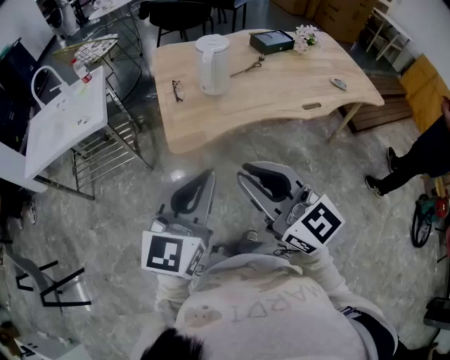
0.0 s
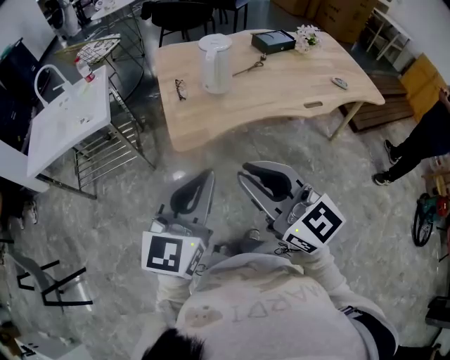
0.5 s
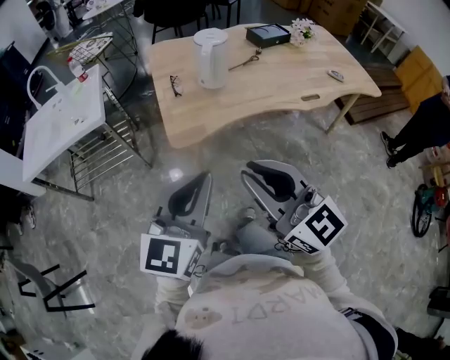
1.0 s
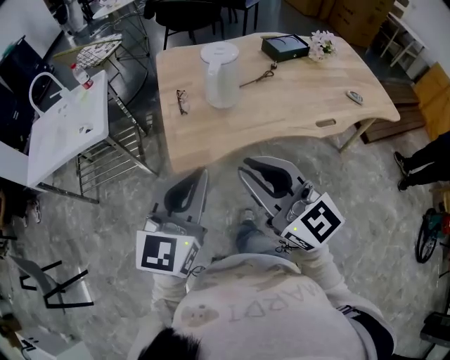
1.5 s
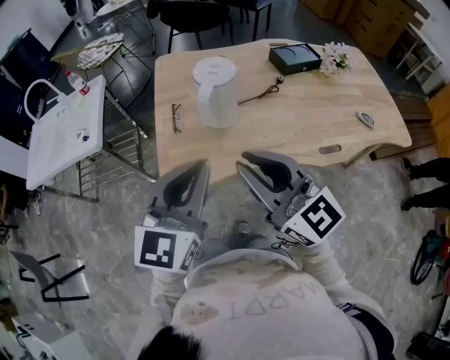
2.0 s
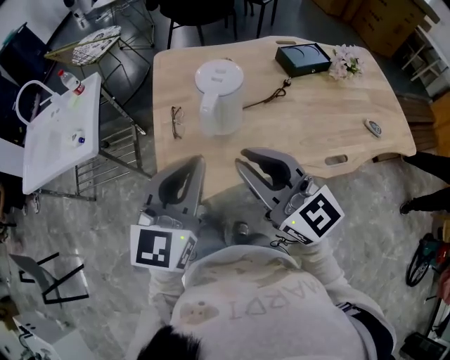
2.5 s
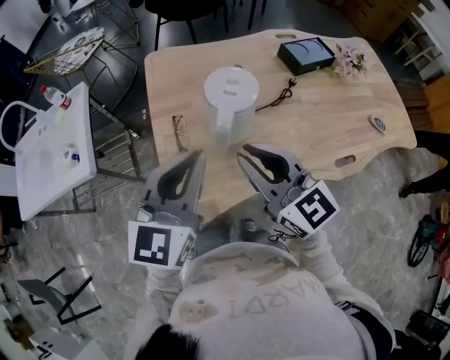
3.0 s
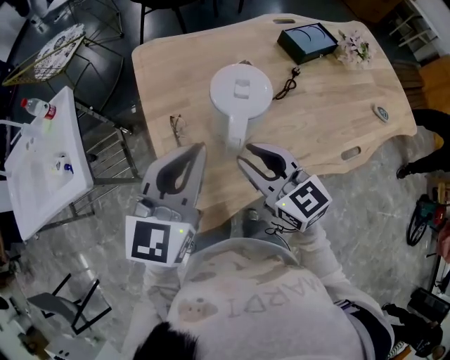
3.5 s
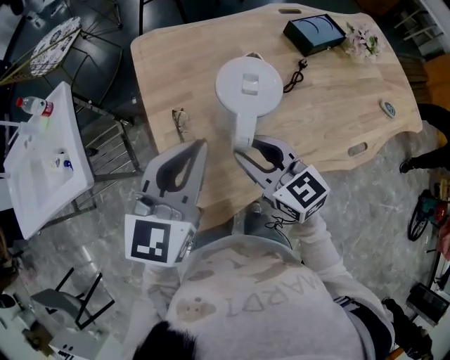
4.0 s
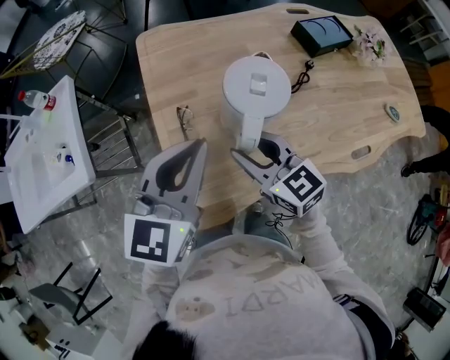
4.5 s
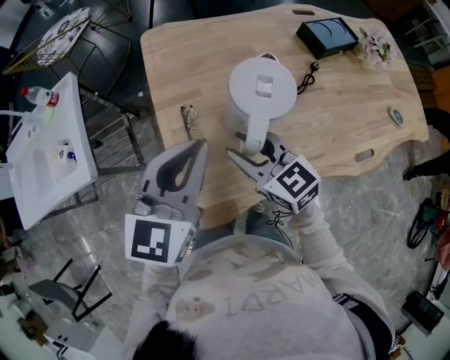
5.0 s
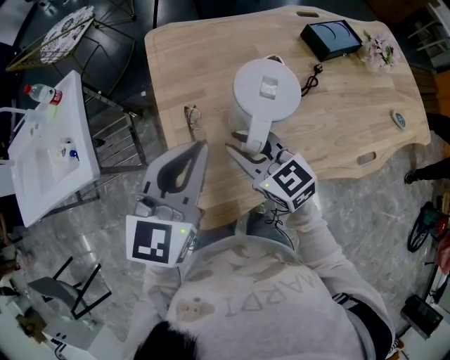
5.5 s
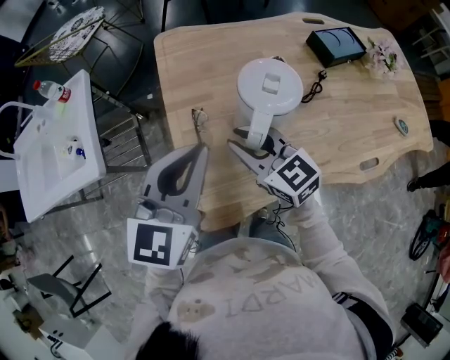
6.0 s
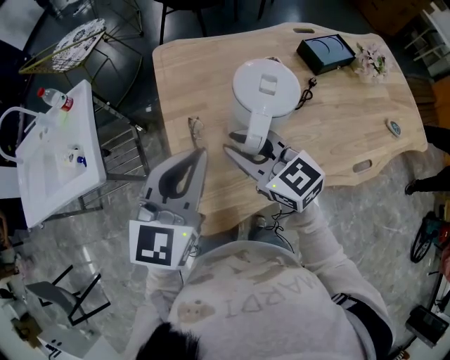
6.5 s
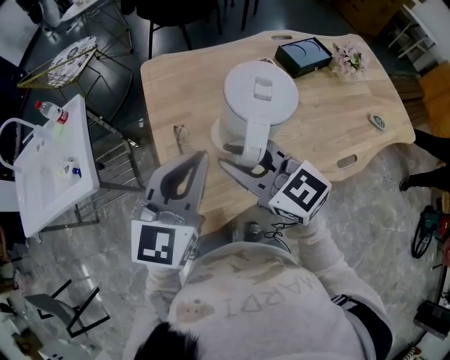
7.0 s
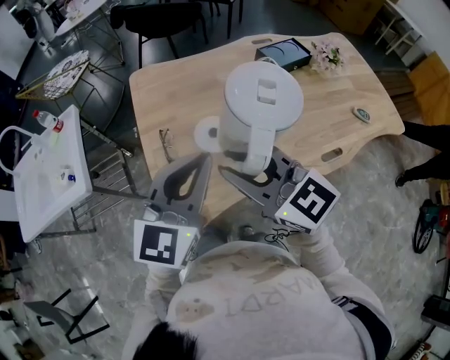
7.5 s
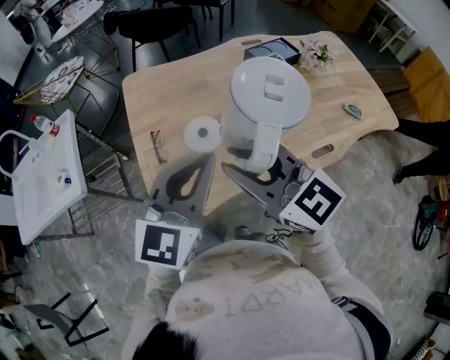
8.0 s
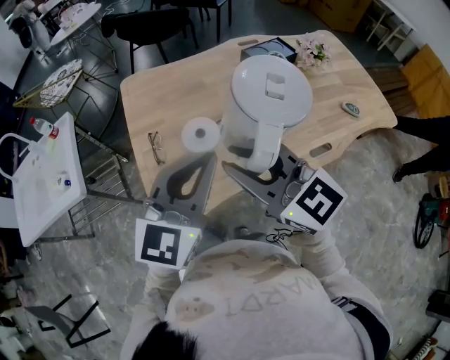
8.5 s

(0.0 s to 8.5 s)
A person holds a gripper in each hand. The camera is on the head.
0.0 s - 2.0 s: Both grippers move forward and to the right, roughly 25 cm.
2.0 s - 4.0 s: The right gripper is displaced forward and downward by approximately 30 cm, and changes its angle by about 30 degrees. The left gripper travels forward by roughly 25 cm.
4.0 s - 6.5 s: The right gripper shifts by some 5 cm.
6.5 s - 8.5 s: The right gripper shifts about 20 cm backward, upward and to the right, while the left gripper moves to the right and backward, some 20 cm.

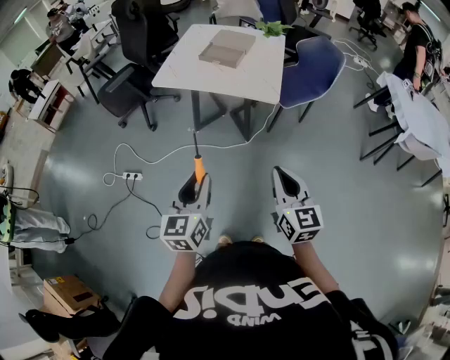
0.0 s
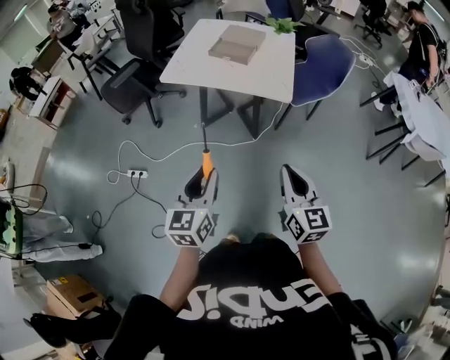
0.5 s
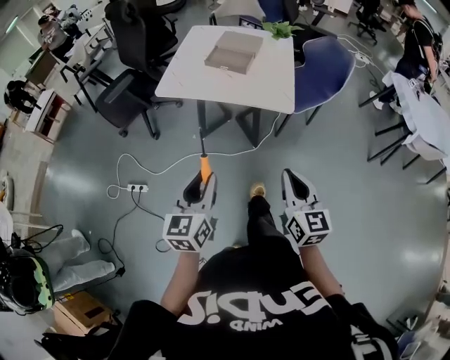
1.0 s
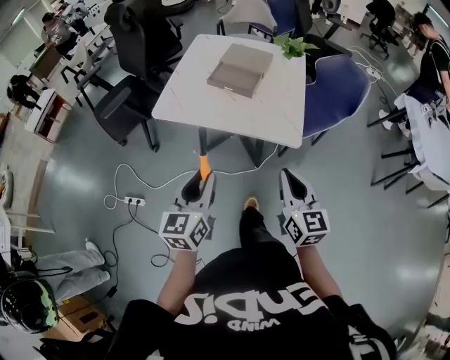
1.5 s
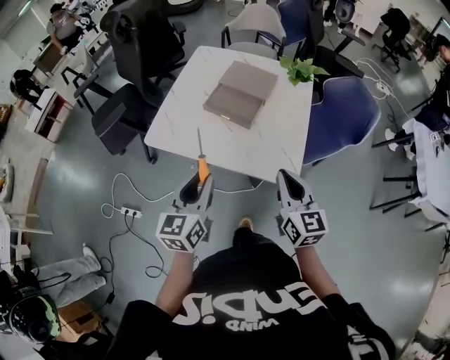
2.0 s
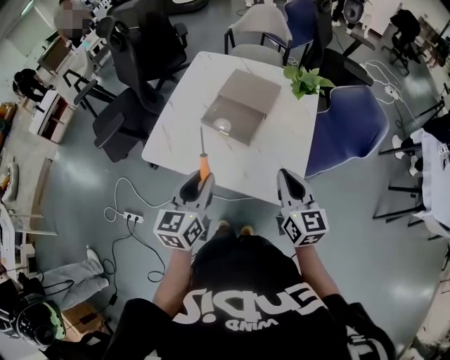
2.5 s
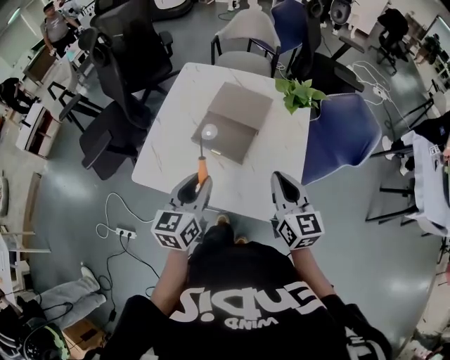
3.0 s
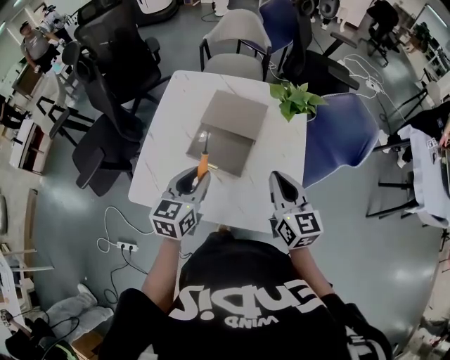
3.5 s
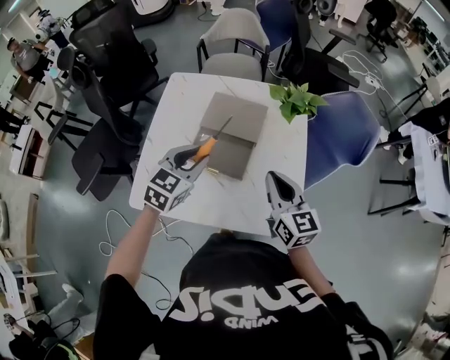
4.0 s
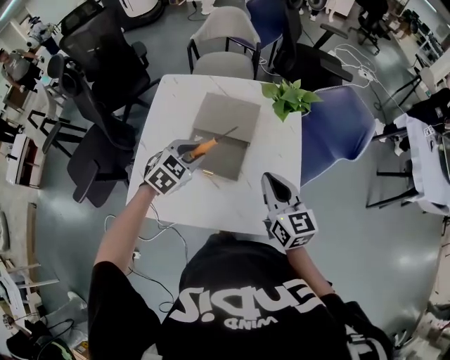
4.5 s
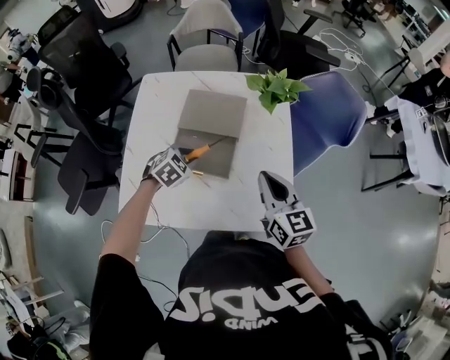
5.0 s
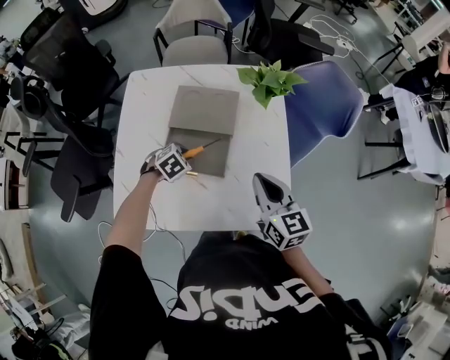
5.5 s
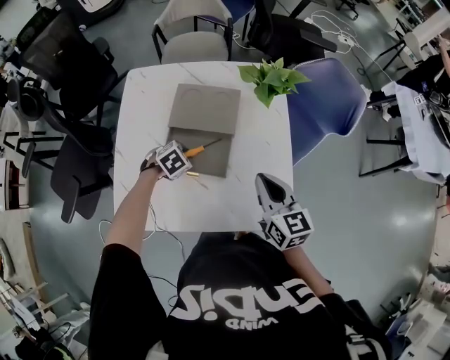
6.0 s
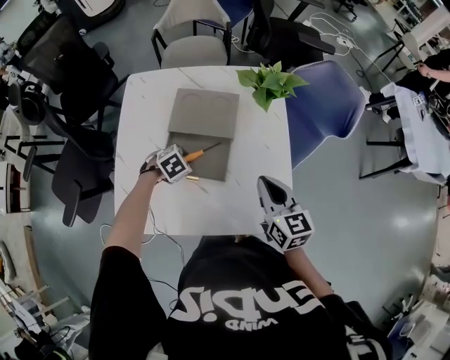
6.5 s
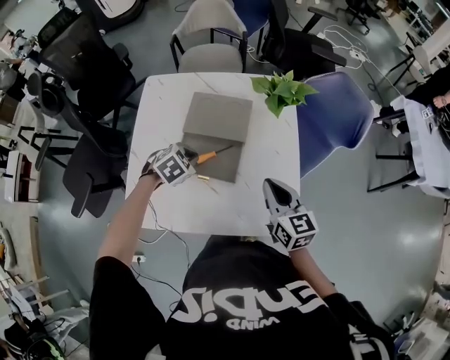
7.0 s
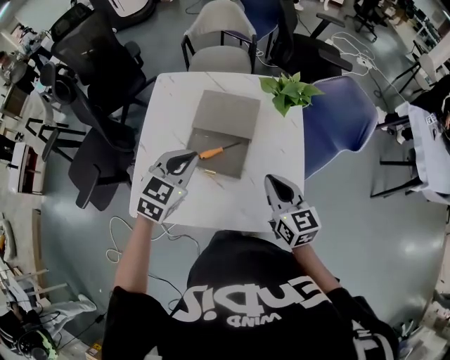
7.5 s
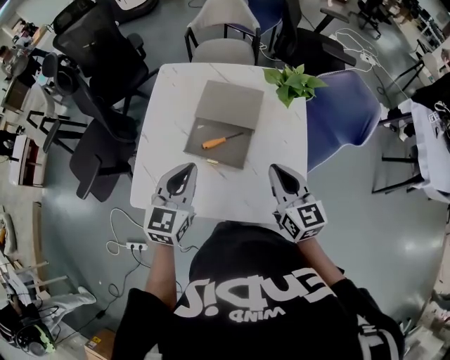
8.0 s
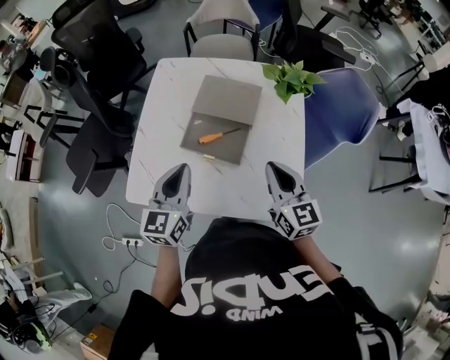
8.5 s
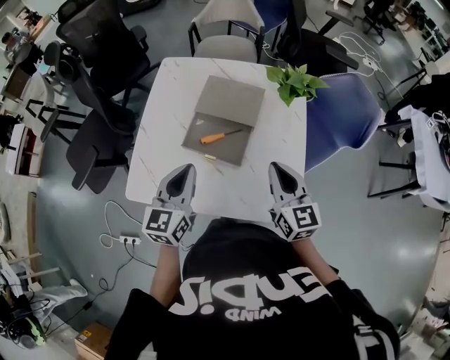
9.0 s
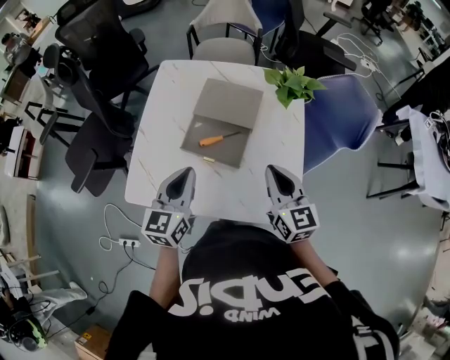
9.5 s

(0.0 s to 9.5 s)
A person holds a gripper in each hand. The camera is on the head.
0.0 s - 2.0 s: Both grippers are carried forward, some 40 cm.
2.0 s - 4.0 s: Both grippers move forward, about 30 cm. The left gripper rotates some 40 degrees.
4.0 s - 5.5 s: The left gripper goes some 25 cm downward, and angles its fingers downward, by roughly 40 degrees.
5.5 s - 7.5 s: The left gripper travels upward by some 25 cm, angles its fingers upward, by some 40 degrees, and closes.
7.5 s - 9.5 s: The left gripper travels backward by approximately 10 cm, and rotates approximately 40 degrees.

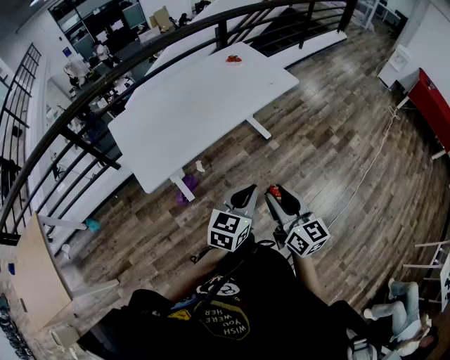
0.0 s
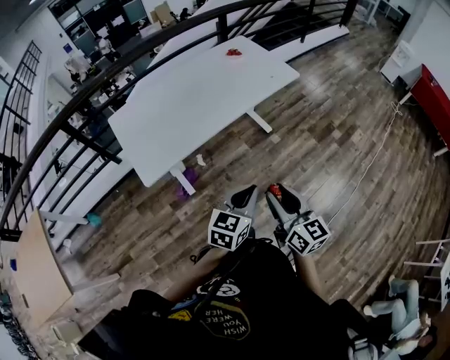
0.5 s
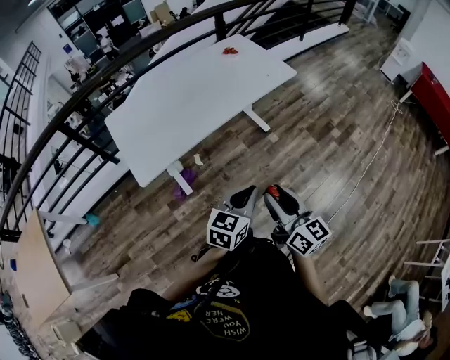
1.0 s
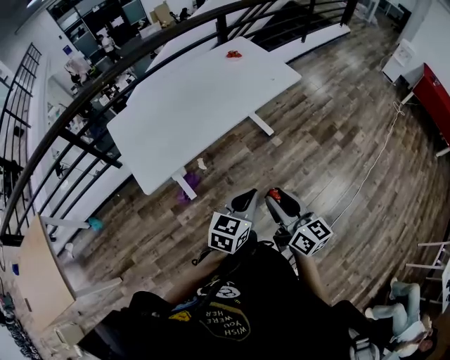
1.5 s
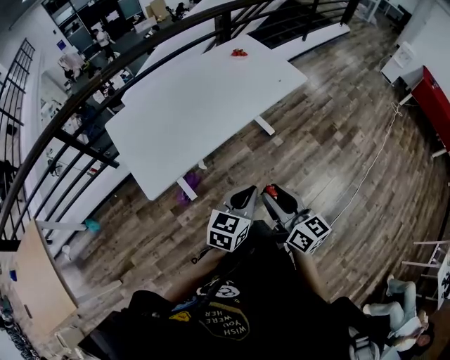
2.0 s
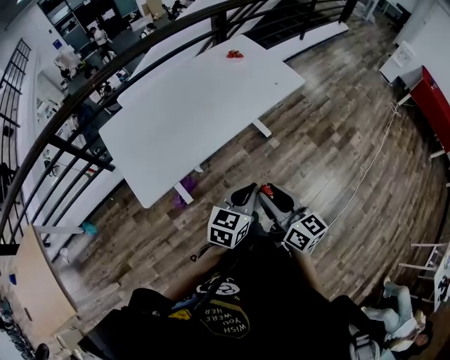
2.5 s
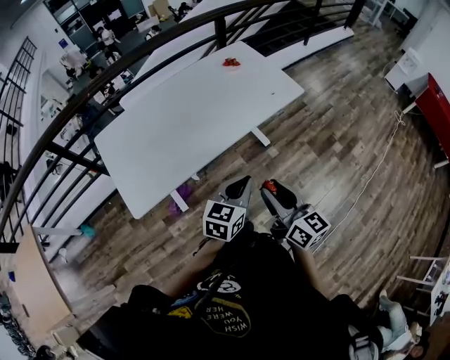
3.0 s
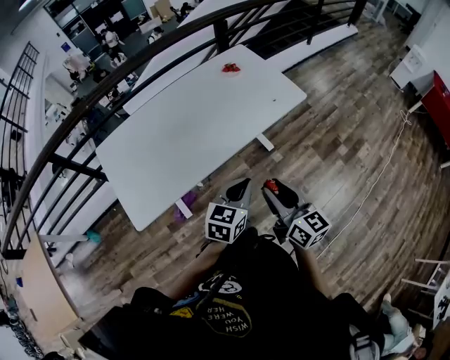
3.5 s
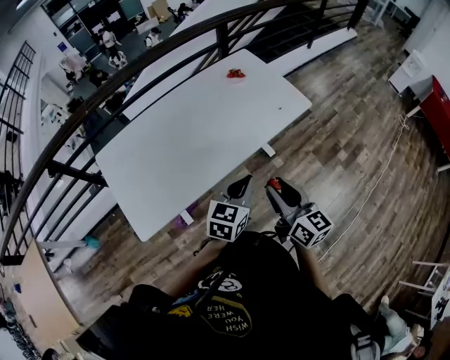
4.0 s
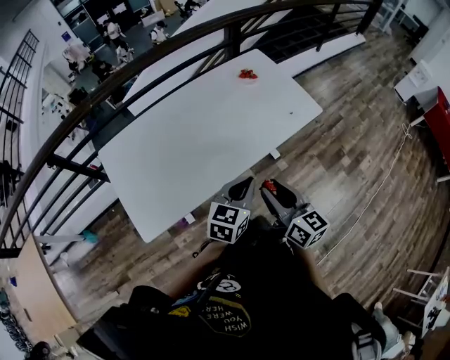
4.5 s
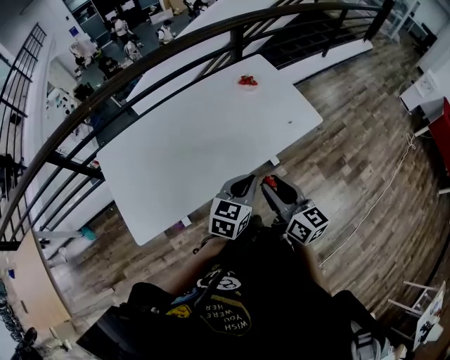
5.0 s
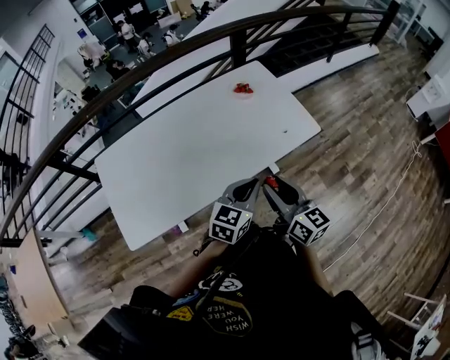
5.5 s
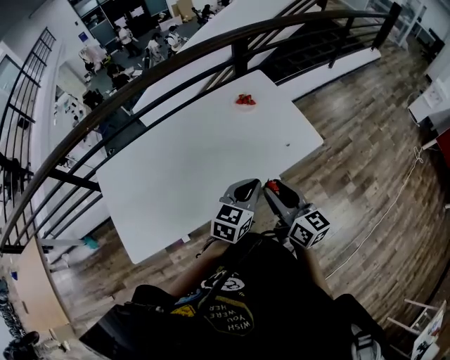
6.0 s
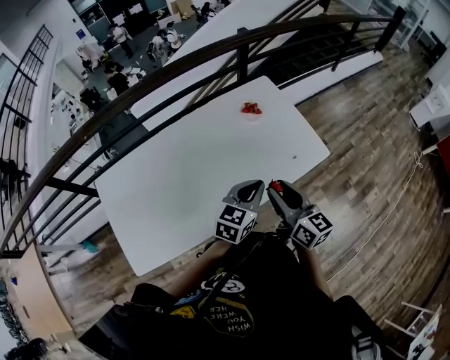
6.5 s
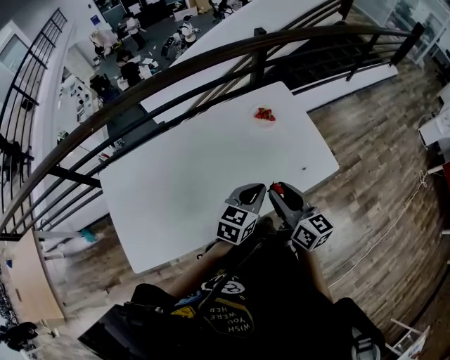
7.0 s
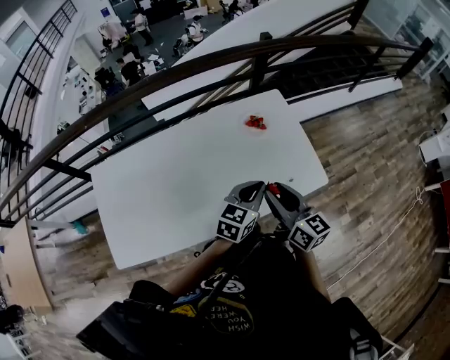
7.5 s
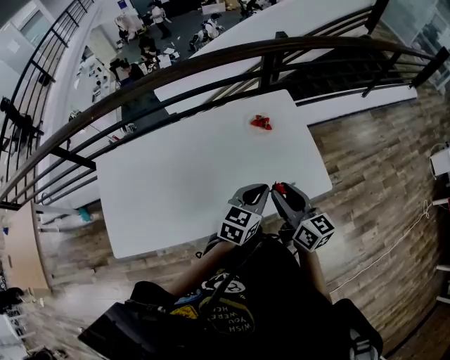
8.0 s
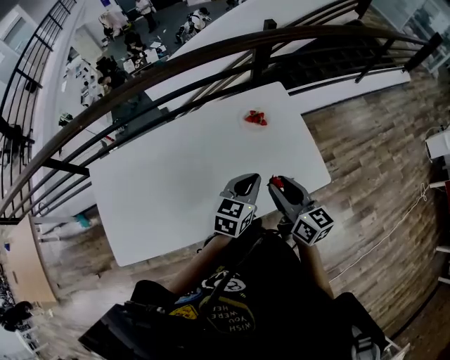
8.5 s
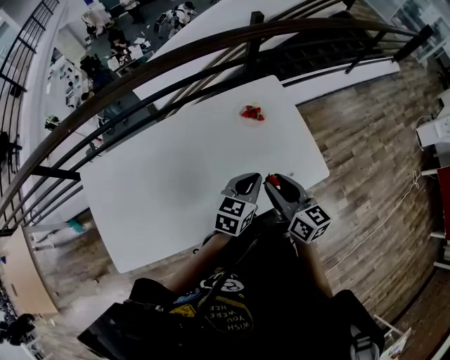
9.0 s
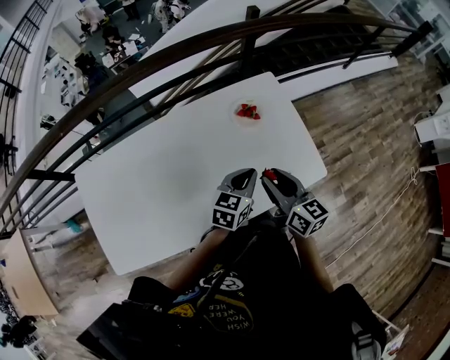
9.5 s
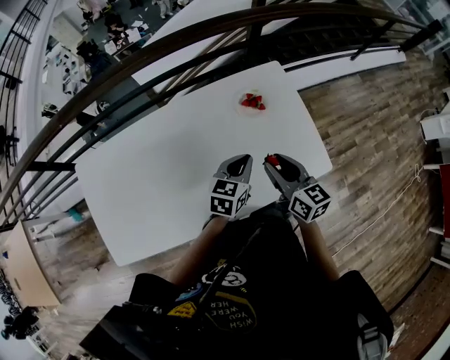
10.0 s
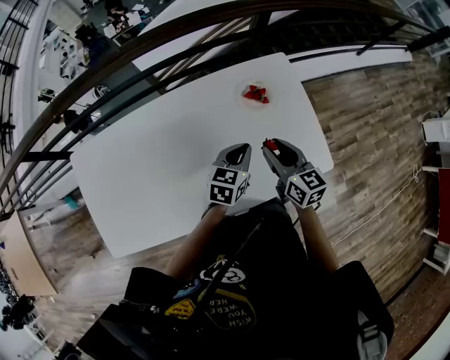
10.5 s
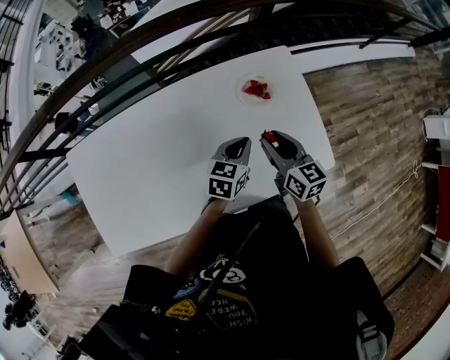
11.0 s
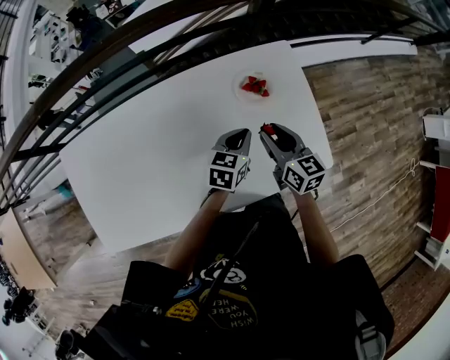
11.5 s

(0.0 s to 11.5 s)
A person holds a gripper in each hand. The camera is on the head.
0.0 s - 2.0 s: The right gripper is displaced to the left and forward by roughly 10 cm; the left gripper moves forward and to the left, some 10 cm.
2.0 s - 4.0 s: Both grippers move forward, roughly 30 cm.
4.0 s - 6.0 s: The right gripper heads forward, covering about 20 cm. Meanwhile the left gripper shifts about 20 cm forward and to the right.
6.0 s - 7.5 s: Both grippers move forward, some 20 cm.
7.5 s - 9.5 s: The two grippers go roughly 10 cm forward and downward.
9.5 s - 11.5 s: Both grippers move forward and downward, some 20 cm.
